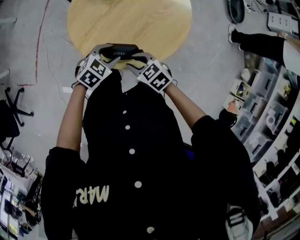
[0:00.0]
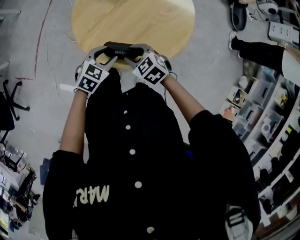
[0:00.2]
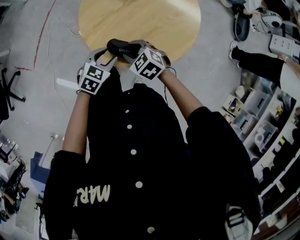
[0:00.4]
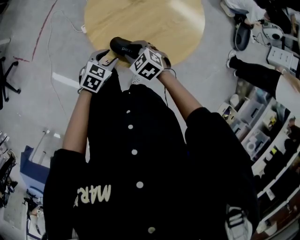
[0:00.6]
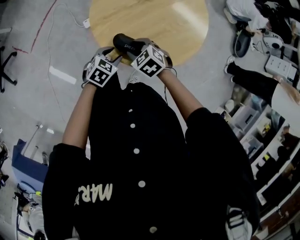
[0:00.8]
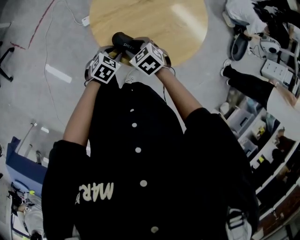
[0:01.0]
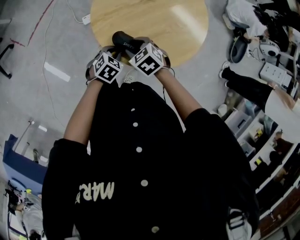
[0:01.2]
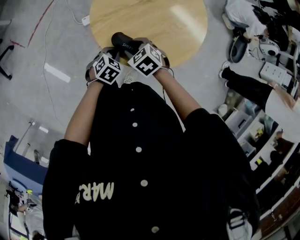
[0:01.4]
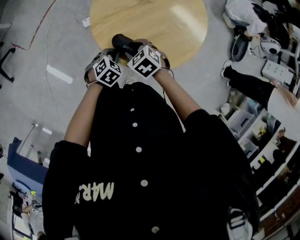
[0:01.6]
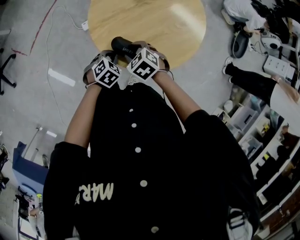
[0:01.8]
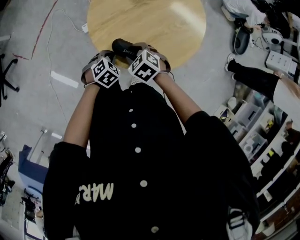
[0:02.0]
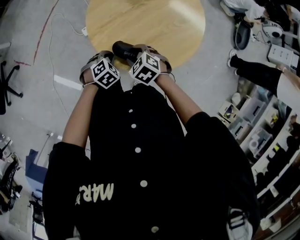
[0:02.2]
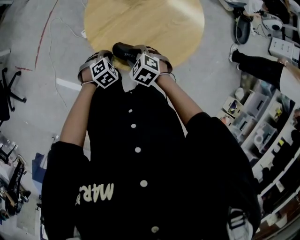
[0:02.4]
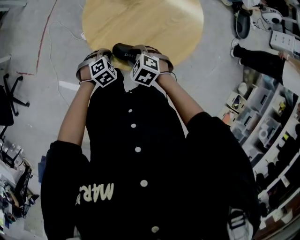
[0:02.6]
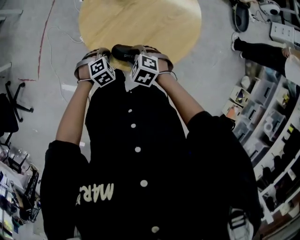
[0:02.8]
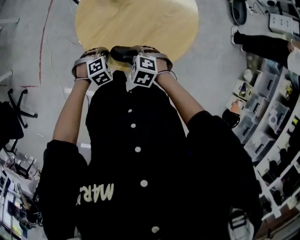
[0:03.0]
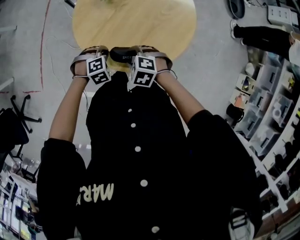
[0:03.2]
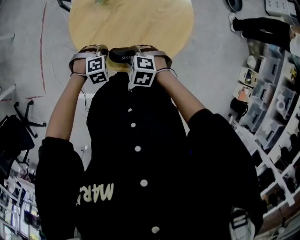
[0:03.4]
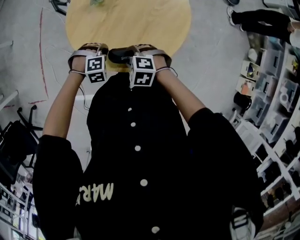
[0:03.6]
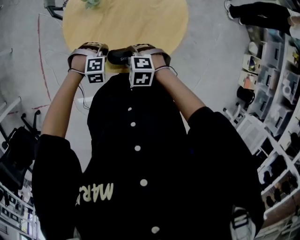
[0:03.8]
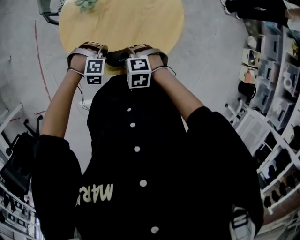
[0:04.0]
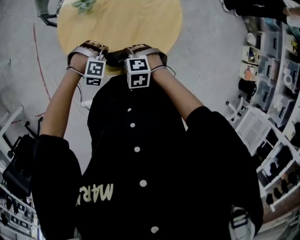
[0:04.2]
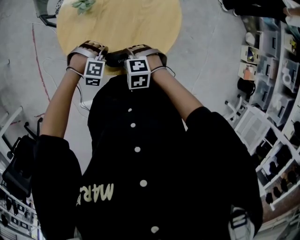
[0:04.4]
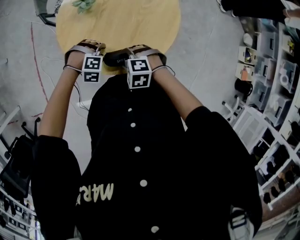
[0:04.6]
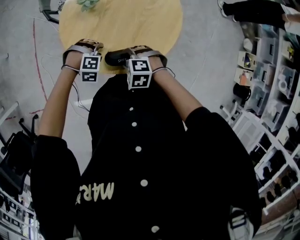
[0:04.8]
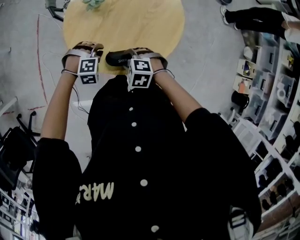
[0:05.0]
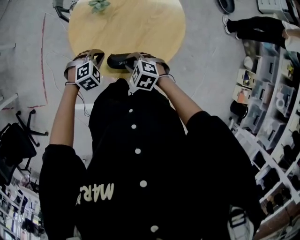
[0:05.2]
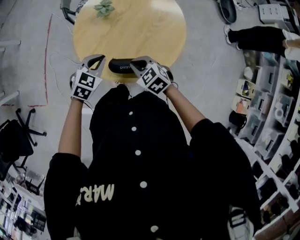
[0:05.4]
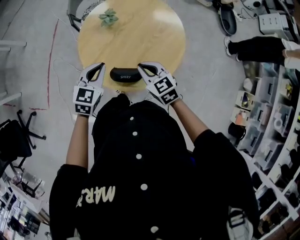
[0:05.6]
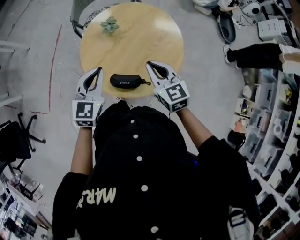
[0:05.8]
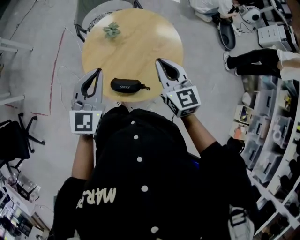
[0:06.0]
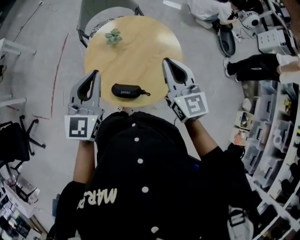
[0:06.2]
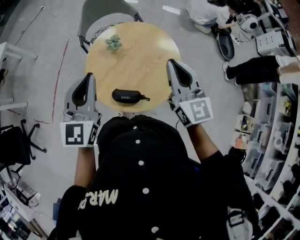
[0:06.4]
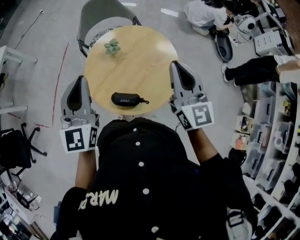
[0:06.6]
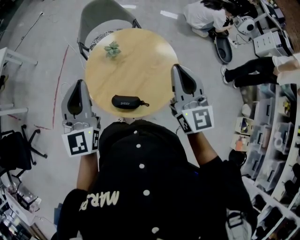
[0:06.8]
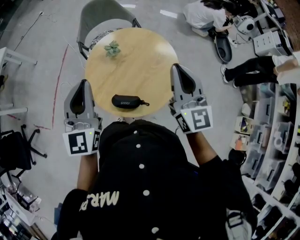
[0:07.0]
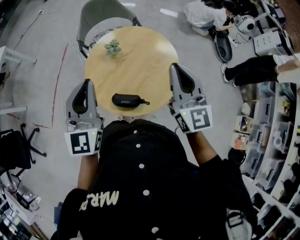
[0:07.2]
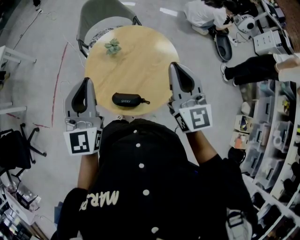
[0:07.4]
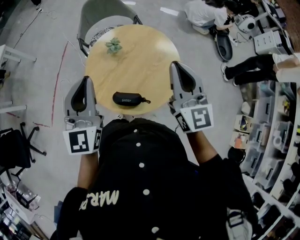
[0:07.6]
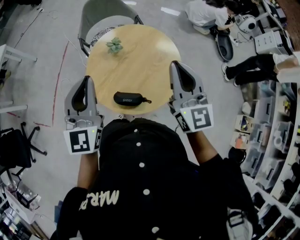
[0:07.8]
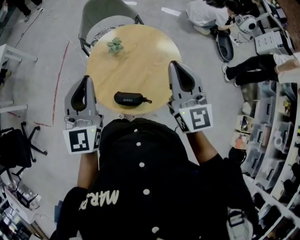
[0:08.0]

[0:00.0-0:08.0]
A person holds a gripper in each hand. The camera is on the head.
0.0 to 1.6 s: The right gripper shifts by approximately 10 cm, and changes its angle by about 30 degrees; the left gripper is displaced downward by approximately 5 cm, turns by about 30 degrees, and closes its fingers.
1.6 to 3.2 s: The left gripper moves forward, roughly 10 cm, and rotates around the line of its fingers by about 60 degrees, clockwise from behind.
3.2 to 4.8 s: The left gripper turns by about 40 degrees, and opens up.
4.8 to 6.4 s: Both grippers travel together upward, approximately 40 cm. The right gripper points its fingers approximately 70 degrees further upward, and closes up, while the left gripper tilts its fingers roughly 70 degrees upward, and closes.
6.4 to 8.0 s: The grippers move only a little.

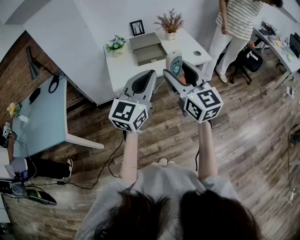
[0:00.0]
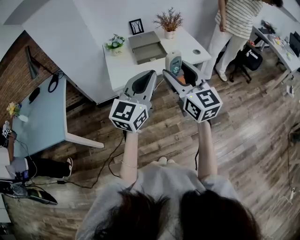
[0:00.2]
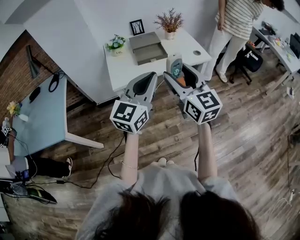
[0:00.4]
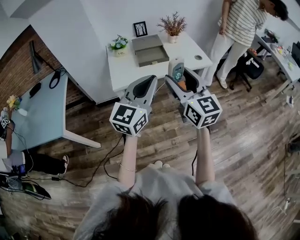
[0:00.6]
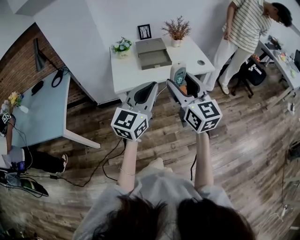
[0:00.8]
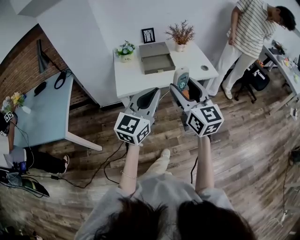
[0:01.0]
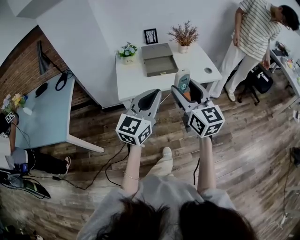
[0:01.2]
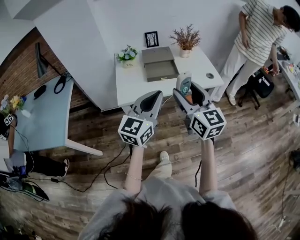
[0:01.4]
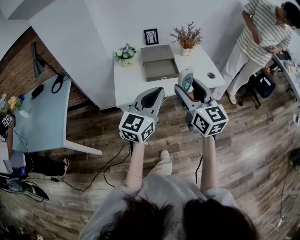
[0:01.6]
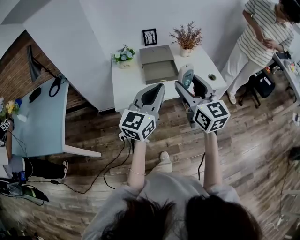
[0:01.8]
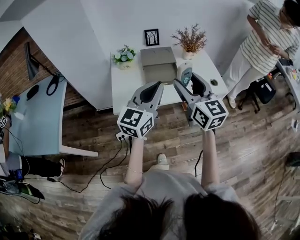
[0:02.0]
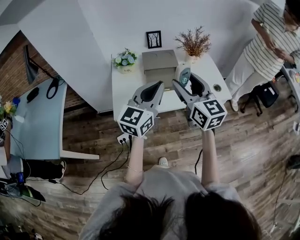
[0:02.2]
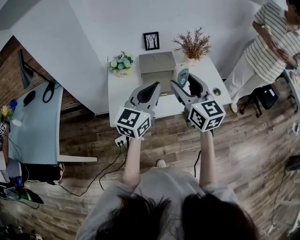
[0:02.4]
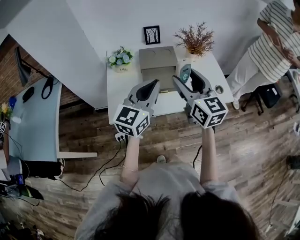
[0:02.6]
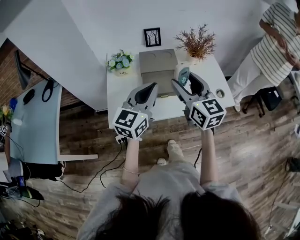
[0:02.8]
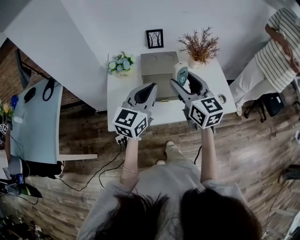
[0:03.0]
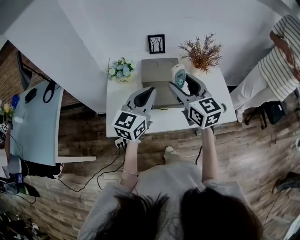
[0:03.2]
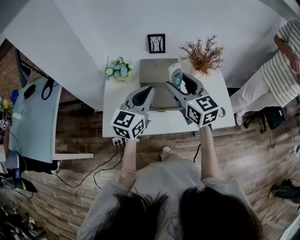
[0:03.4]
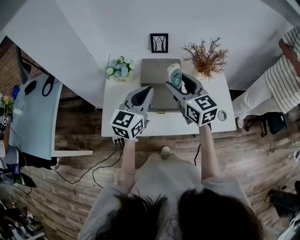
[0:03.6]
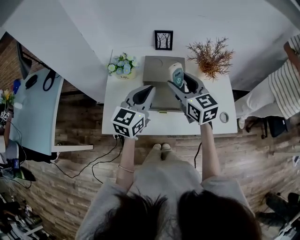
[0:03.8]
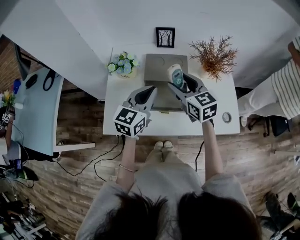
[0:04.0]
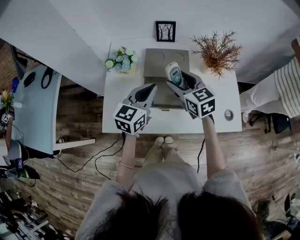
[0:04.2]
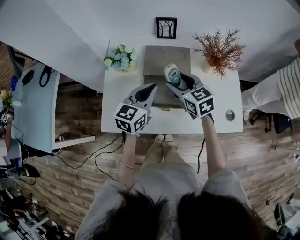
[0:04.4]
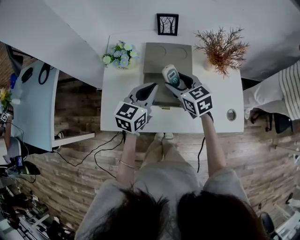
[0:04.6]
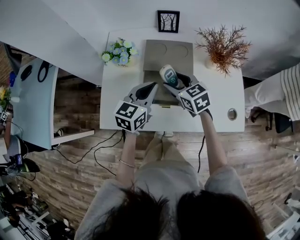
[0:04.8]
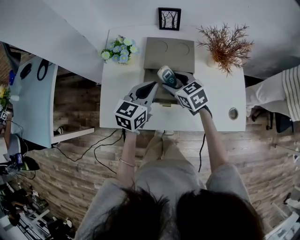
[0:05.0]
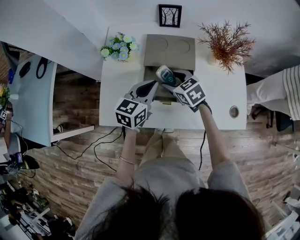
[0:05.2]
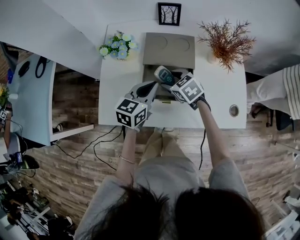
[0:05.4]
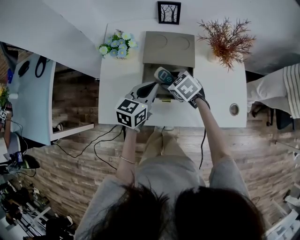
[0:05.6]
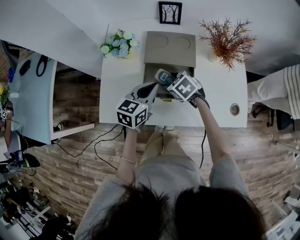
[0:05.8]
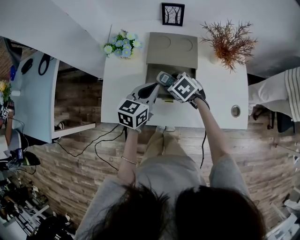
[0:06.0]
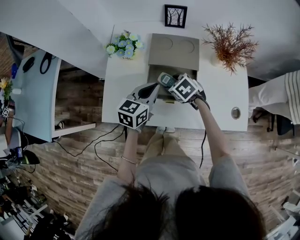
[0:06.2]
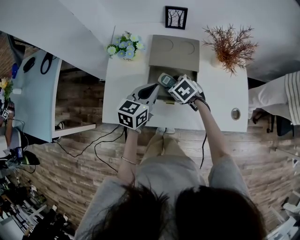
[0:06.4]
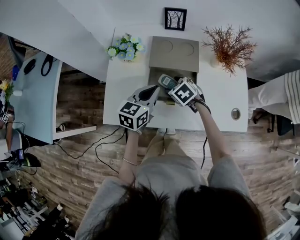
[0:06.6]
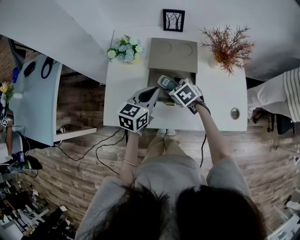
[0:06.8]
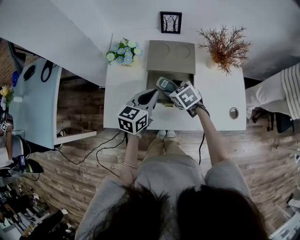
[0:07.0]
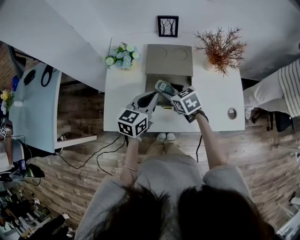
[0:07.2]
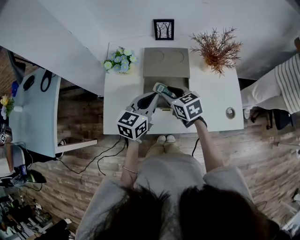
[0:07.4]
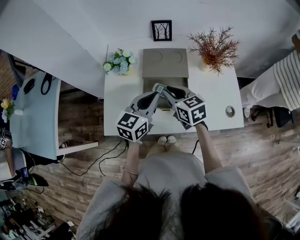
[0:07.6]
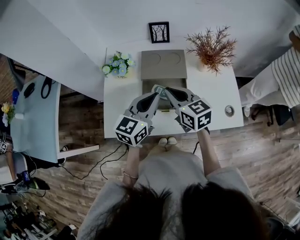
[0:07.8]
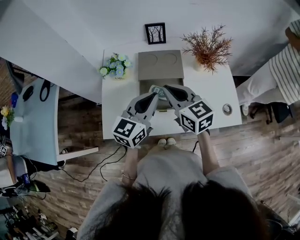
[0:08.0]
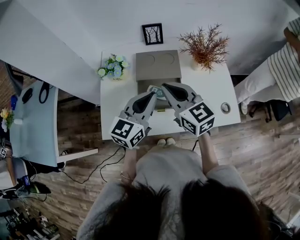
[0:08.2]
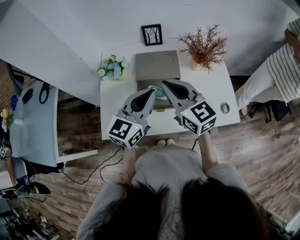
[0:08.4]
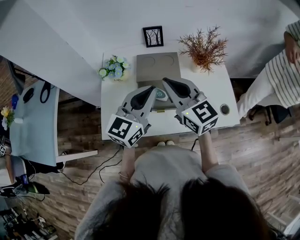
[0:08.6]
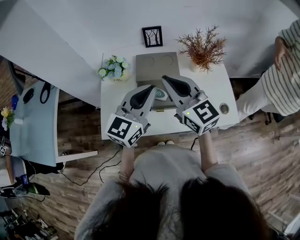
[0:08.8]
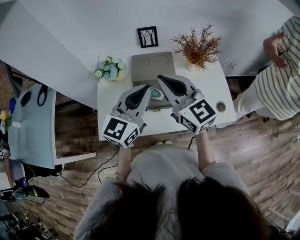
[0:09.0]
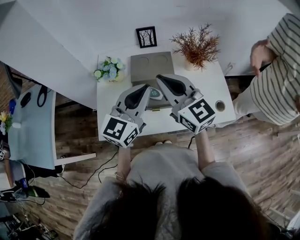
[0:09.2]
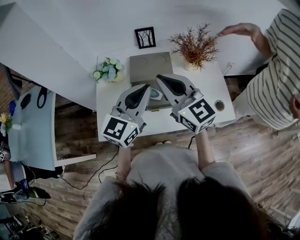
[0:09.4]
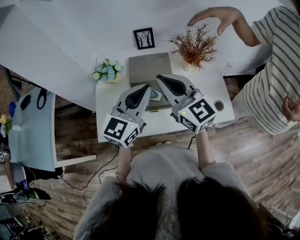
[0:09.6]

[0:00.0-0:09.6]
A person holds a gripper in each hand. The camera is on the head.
0.0 to 1.6 s: Both grippers travel together forward, about 15 cm.
1.6 to 3.2 s: Both grippers move forward, roughly 30 cm.
3.2 to 4.8 s: The grippers both shift downward and forward by about 20 cm. The right gripper changes its angle by some 30 degrees.
4.8 to 6.4 s: The right gripper heads downward, covering some 10 cm, and rotates about 30 degrees.
6.4 to 8.0 s: The right gripper heads upward, covering approximately 20 cm, tilts its fingers approximately 50 degrees upward, and closes up, while the left gripper shifts approximately 10 cm upward.
8.0 to 9.6 s: Both grippers move upward, about 10 cm. The right gripper changes its angle by approximately 20 degrees.

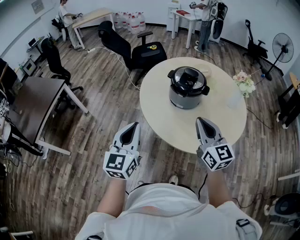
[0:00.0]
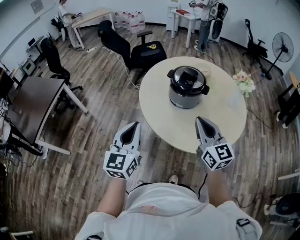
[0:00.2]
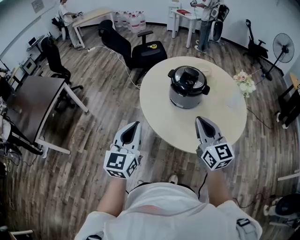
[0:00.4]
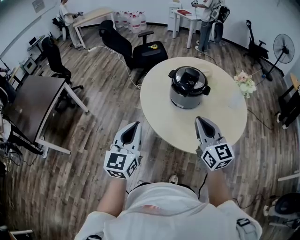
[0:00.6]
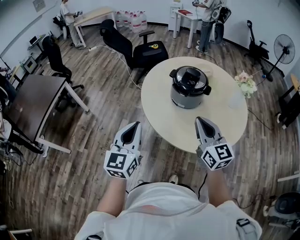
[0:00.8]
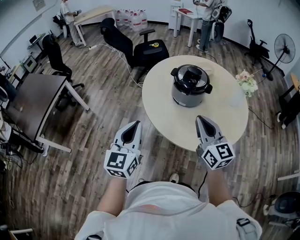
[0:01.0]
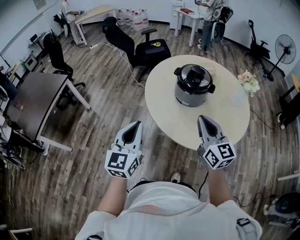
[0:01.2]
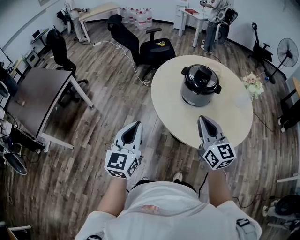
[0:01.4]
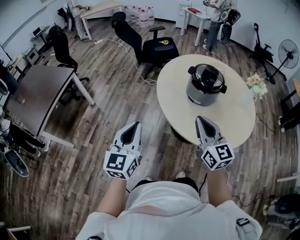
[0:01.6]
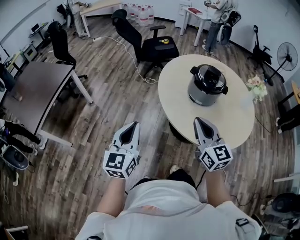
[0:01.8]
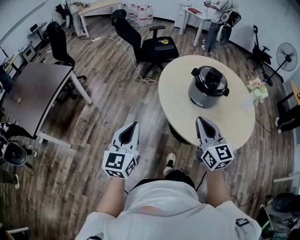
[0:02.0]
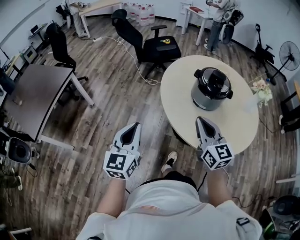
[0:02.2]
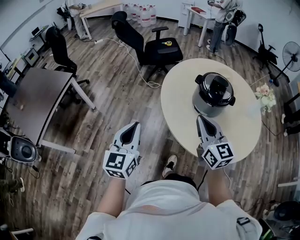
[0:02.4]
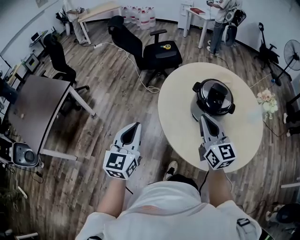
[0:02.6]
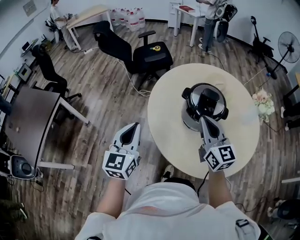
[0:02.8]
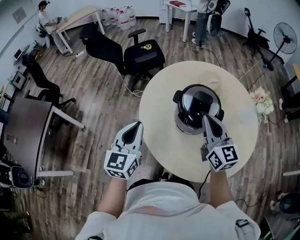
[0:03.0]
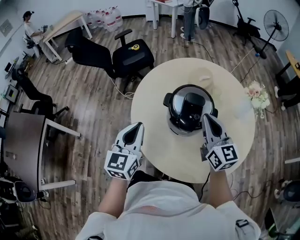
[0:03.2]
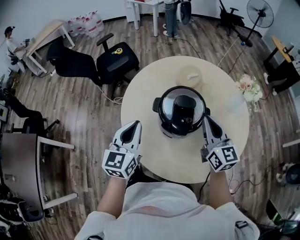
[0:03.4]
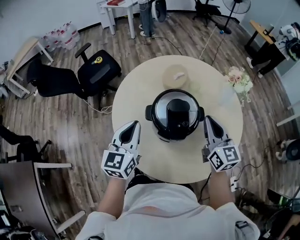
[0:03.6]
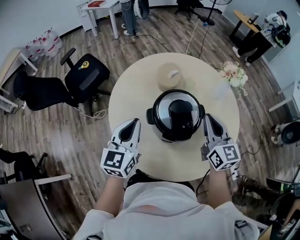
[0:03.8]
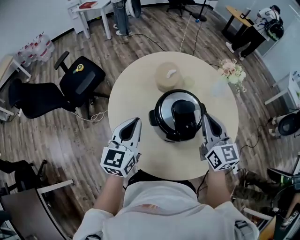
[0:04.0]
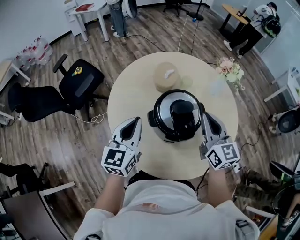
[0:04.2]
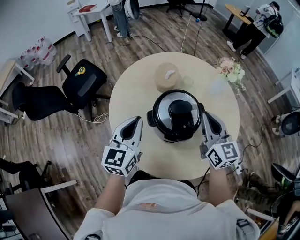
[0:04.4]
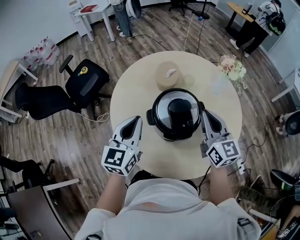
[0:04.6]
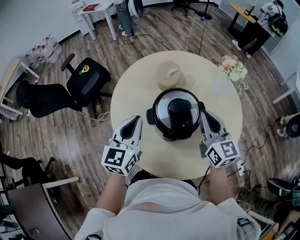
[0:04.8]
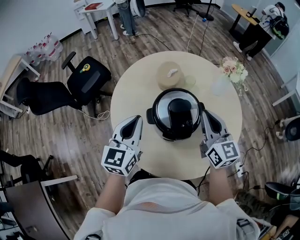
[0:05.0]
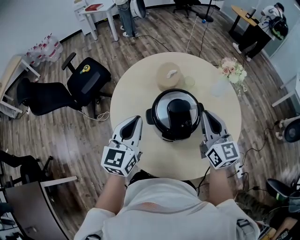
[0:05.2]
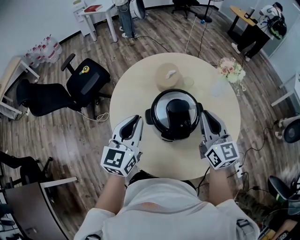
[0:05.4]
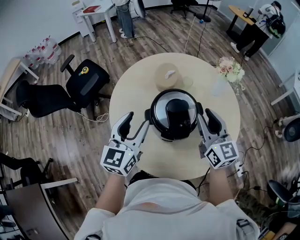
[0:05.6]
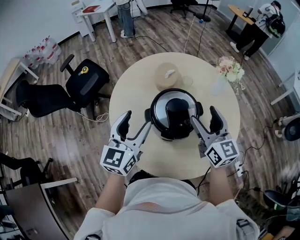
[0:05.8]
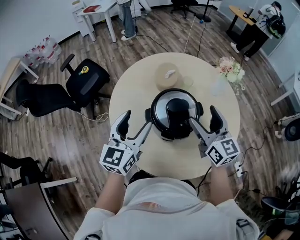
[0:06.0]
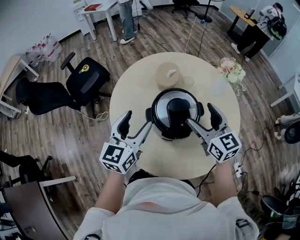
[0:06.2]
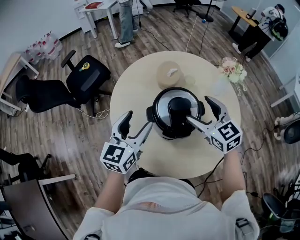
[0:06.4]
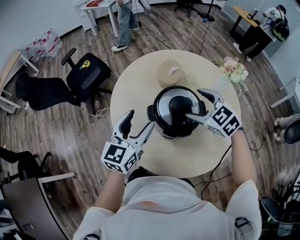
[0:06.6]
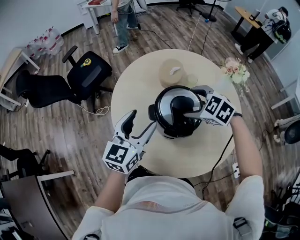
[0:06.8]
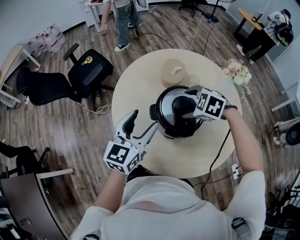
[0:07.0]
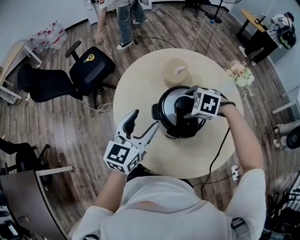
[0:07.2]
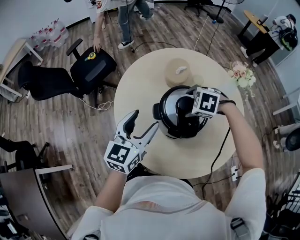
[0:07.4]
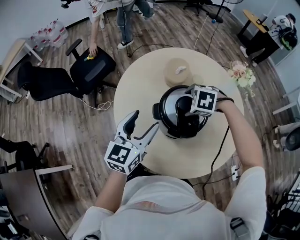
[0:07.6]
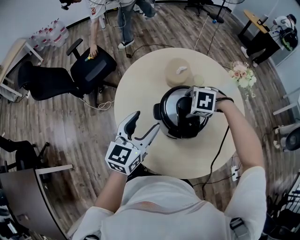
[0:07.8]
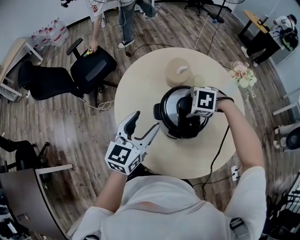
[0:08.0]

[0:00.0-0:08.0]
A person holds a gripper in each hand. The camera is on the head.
0.0 to 1.6 s: Both grippers travel together to the left, about 15 cm.
1.6 to 3.2 s: The two grippers go roughly 40 cm forward and to the right.
3.2 to 4.8 s: The right gripper changes place by about 5 cm, and turns by some 30 degrees; the left gripper changes place by about 15 cm, and turns by roughly 30 degrees.
4.8 to 6.4 s: The left gripper opens, while the right gripper rotates roughly 30 degrees, and opens its fingers.
6.4 to 8.0 s: The right gripper heads downward, covering roughly 15 cm, and angles its fingers downward, by some 50 degrees.
